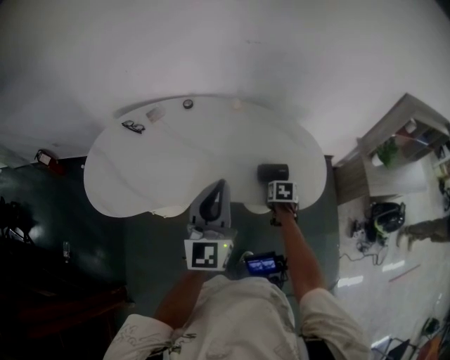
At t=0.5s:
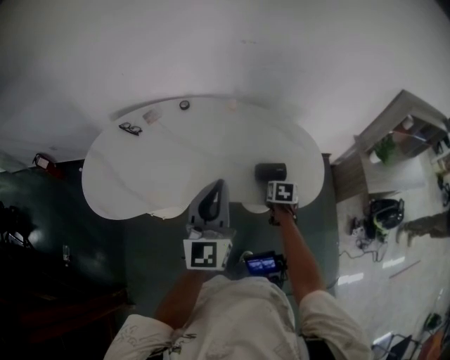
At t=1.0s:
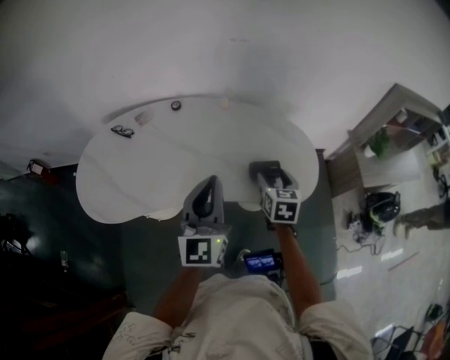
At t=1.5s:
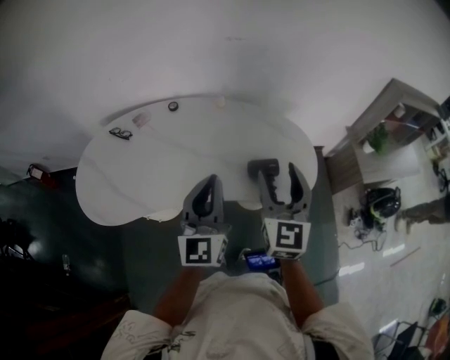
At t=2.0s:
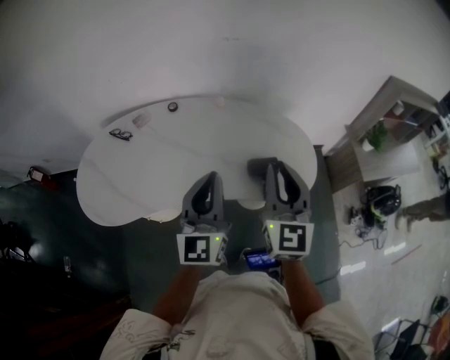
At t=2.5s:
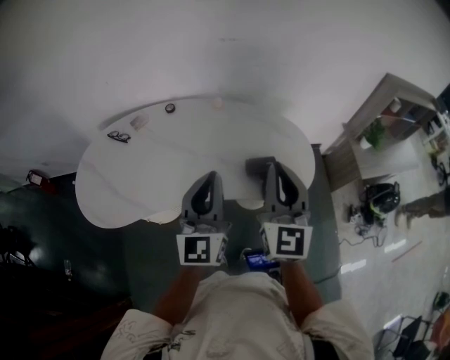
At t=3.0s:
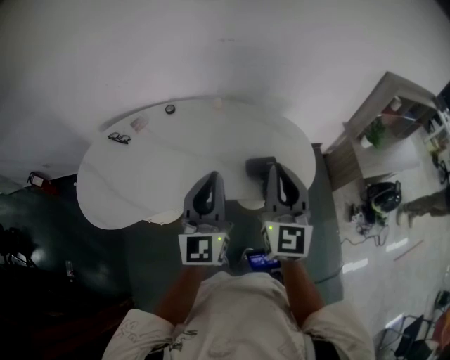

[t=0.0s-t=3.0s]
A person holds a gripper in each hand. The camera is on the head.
t=0.0s to t=1.5s: The right gripper goes approximately 35 cm upward, and angles its fingers upward, by roughly 60 degrees.
t=1.5s to t=3.0s: The right gripper closes up.

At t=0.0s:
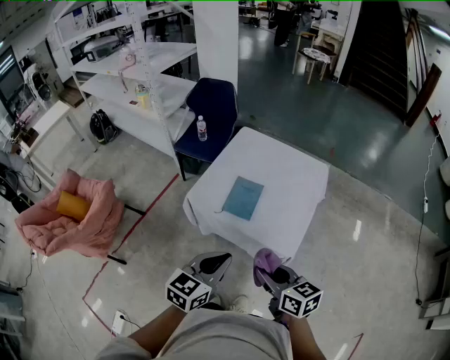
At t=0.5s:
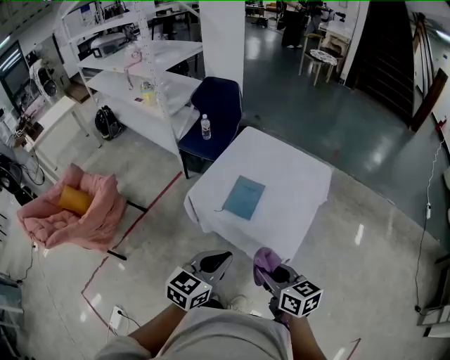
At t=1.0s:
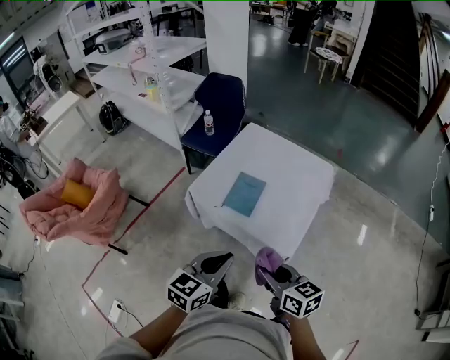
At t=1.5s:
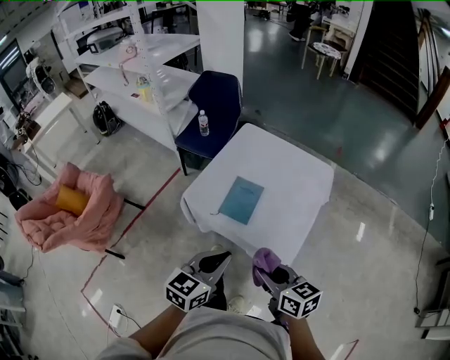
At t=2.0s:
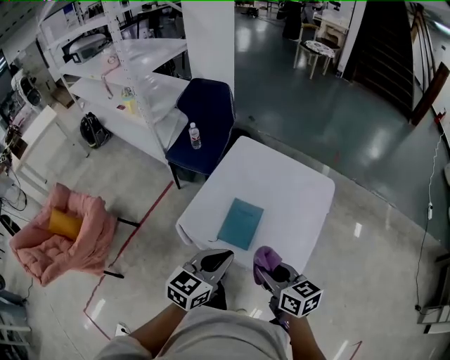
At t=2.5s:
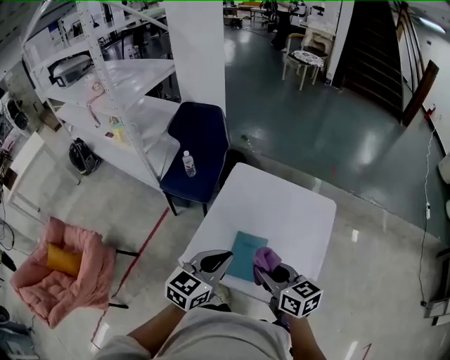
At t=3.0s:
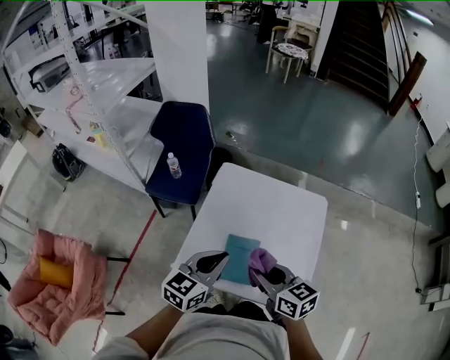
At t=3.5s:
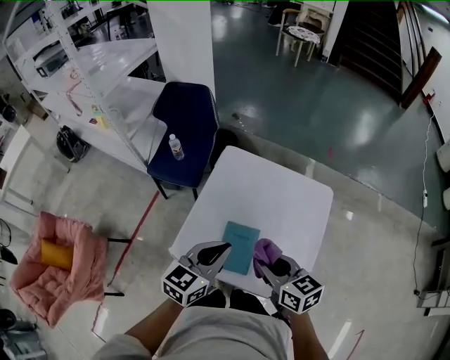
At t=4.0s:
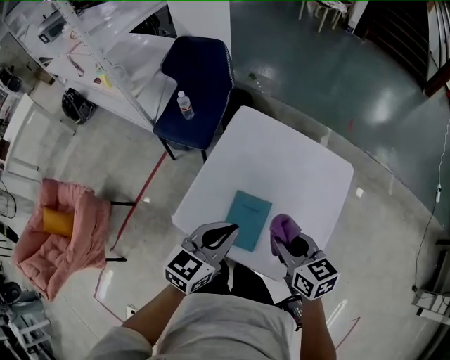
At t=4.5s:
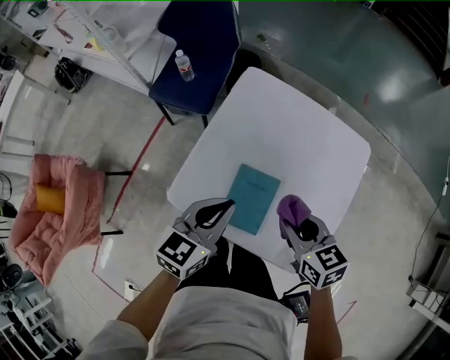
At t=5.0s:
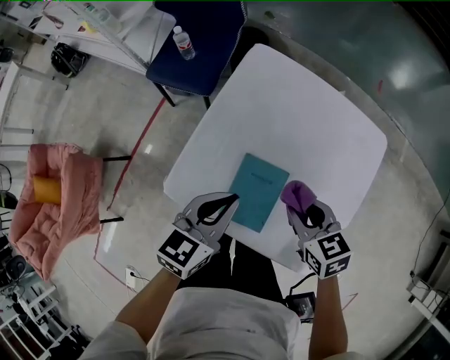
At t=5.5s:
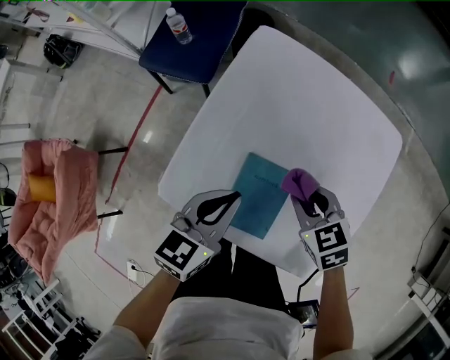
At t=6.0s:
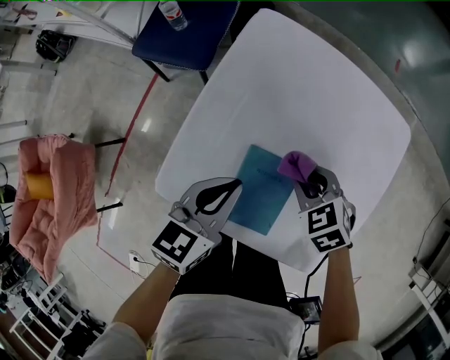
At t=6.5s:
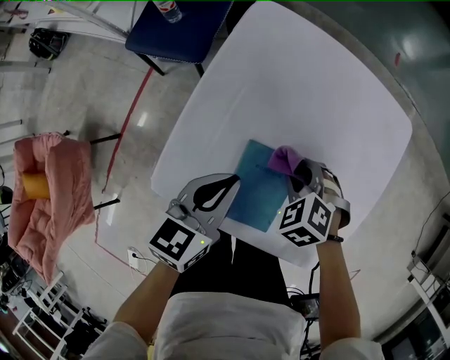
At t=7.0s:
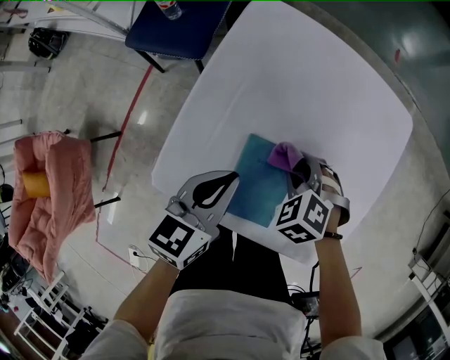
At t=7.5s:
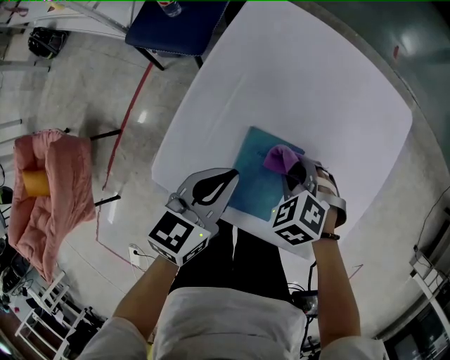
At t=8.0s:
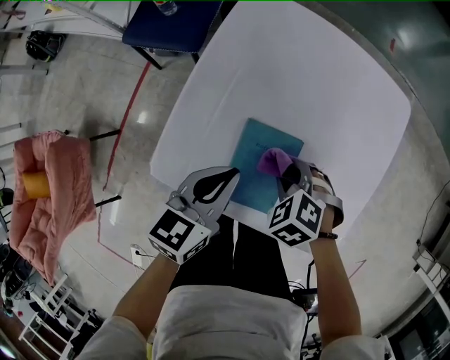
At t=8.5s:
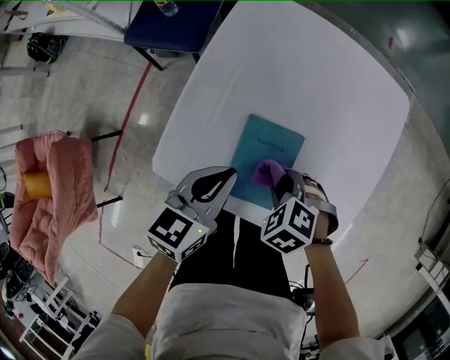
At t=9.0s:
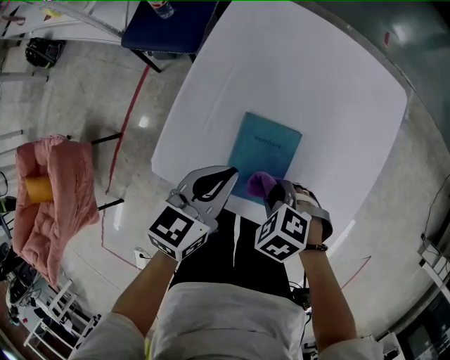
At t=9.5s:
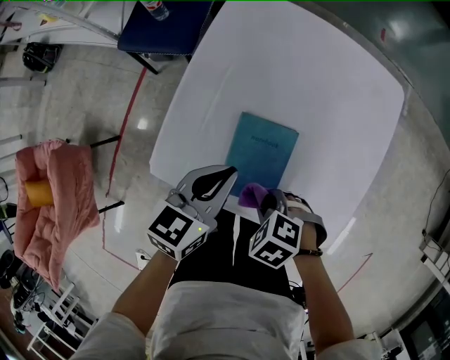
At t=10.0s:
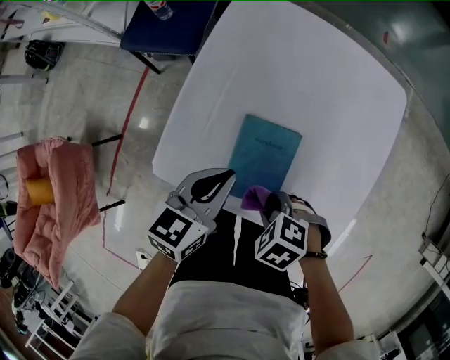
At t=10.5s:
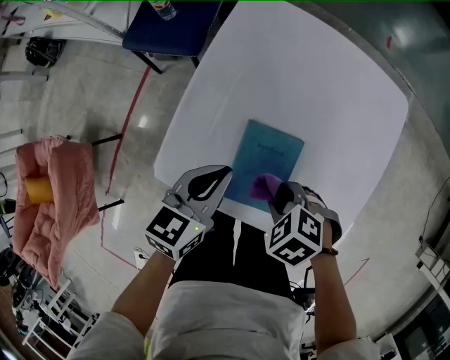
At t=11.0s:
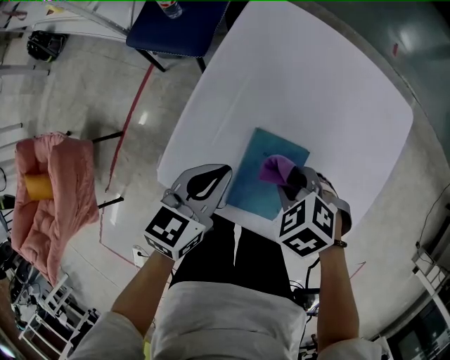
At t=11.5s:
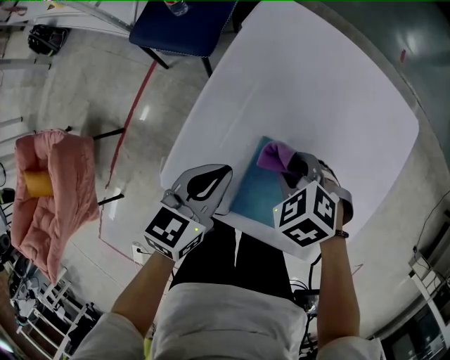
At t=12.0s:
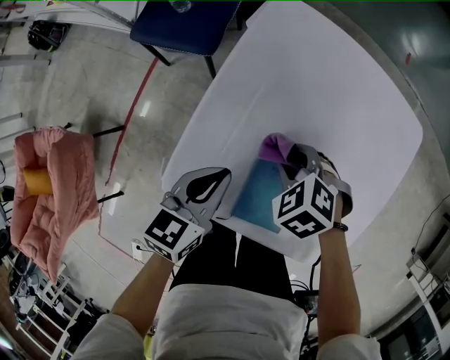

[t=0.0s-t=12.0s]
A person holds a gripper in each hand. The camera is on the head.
t=0.0s to t=2.0s: Both grippers travel together forward, about 15 cm.
t=2.0s to t=4.0s: The grippers both shift forward by some 15 cm.
t=4.0s to t=6.0s: The grippers both shift downward and forward by some 20 cm. The right gripper angles its fingers downward, by about 30 degrees.
t=6.0s to t=8.0s: The right gripper ends up some 10 cm from where it was.
t=8.0s to t=10.0s: The right gripper moves about 10 cm.
t=10.0s to t=12.0s: The right gripper changes place by approximately 20 cm. The left gripper ends up approximately 10 cm from where it was.

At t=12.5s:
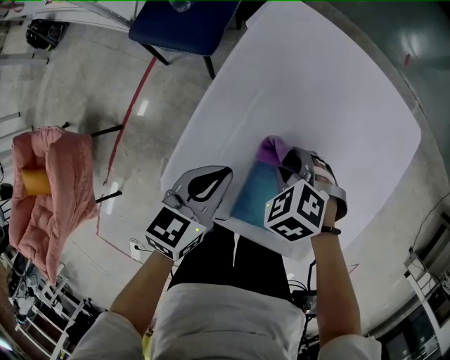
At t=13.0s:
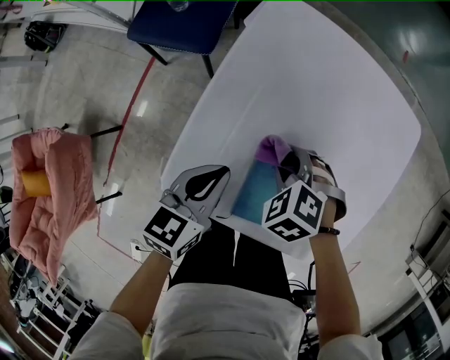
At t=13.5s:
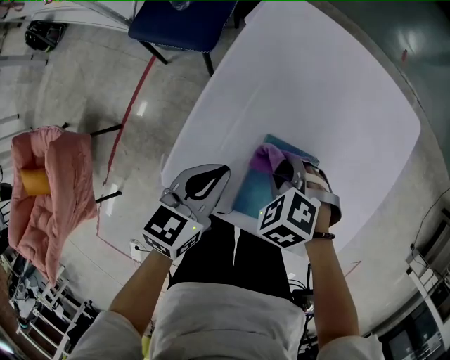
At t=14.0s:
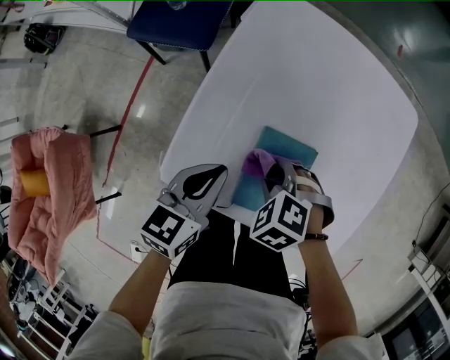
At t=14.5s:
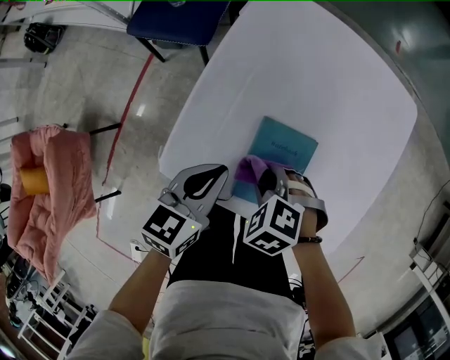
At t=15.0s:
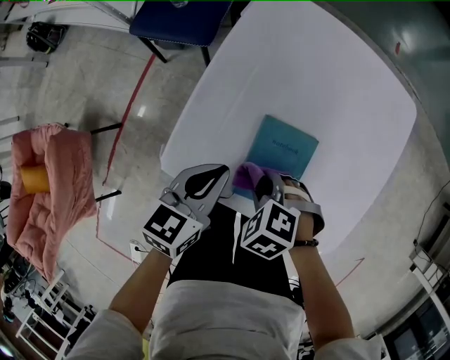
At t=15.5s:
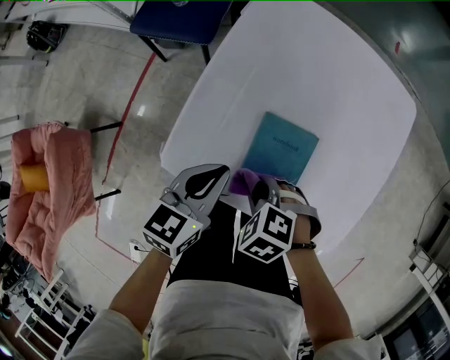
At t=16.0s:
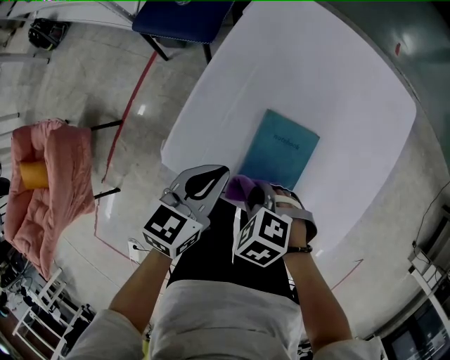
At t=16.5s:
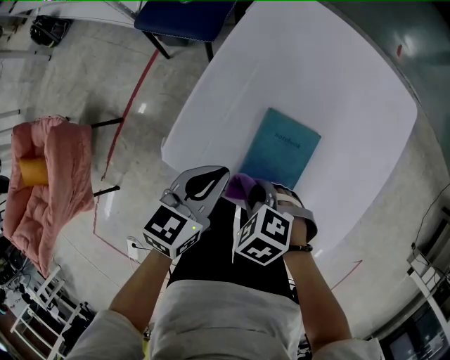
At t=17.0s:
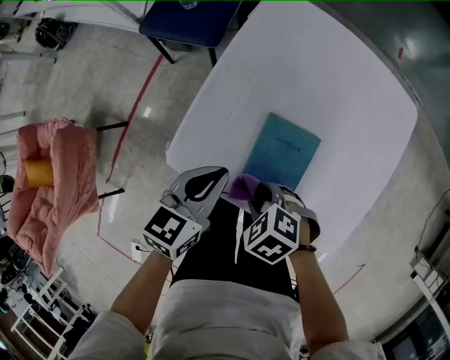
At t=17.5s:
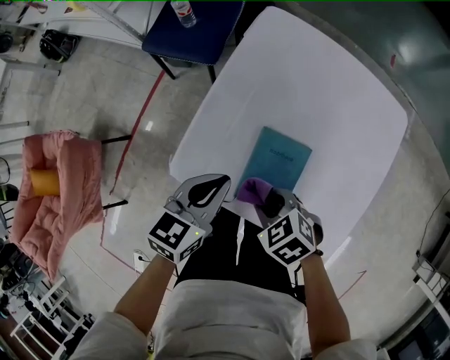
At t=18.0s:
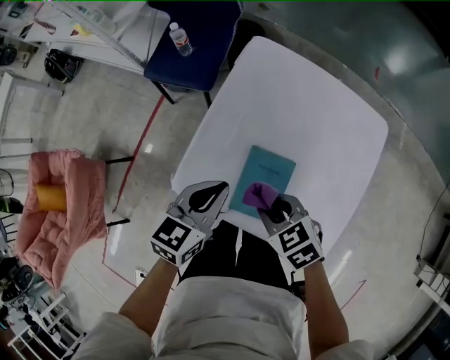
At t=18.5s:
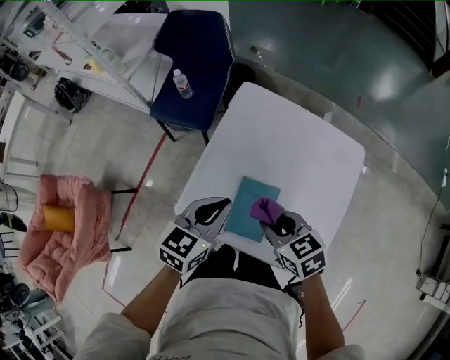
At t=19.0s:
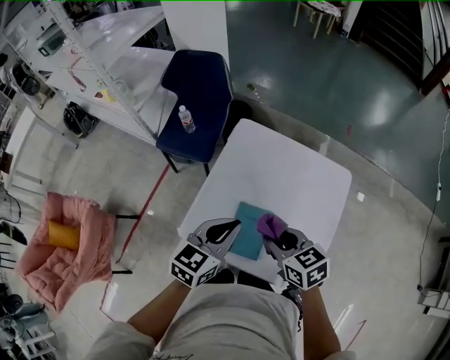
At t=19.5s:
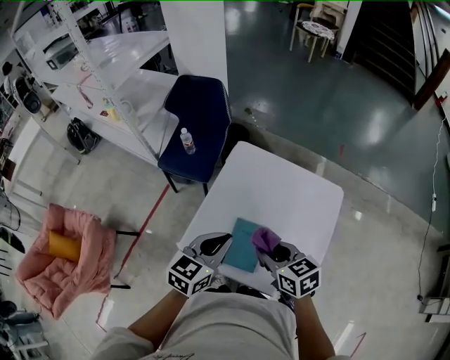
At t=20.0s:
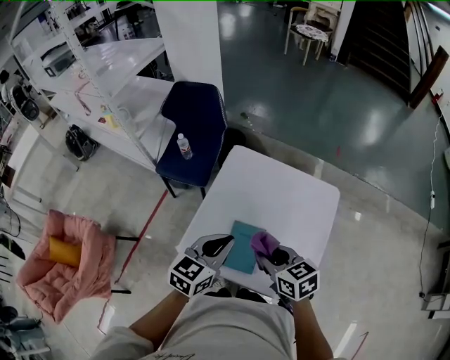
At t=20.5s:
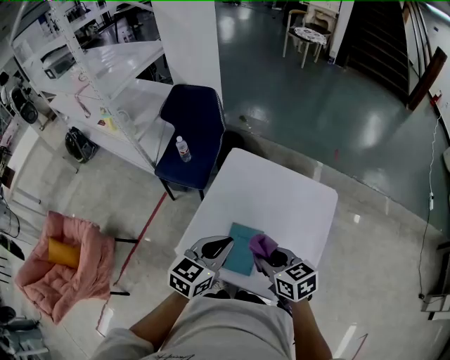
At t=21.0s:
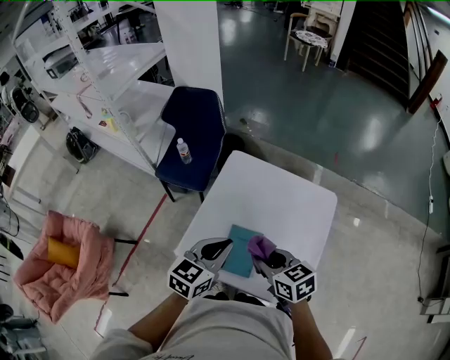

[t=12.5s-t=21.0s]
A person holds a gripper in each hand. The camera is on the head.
t=12.5s to t=14.5s: The right gripper shifts by some 10 cm, while the left gripper ends up approximately 5 cm from where it was.
t=14.5s to t=16.5s: The right gripper shifts by approximately 5 cm.
t=16.5s to t=19.0s: Both grippers move upward, about 20 cm. The right gripper angles its fingers upward, by some 40 degrees.
t=19.0s to t=21.0s: The grippers make only small movements.

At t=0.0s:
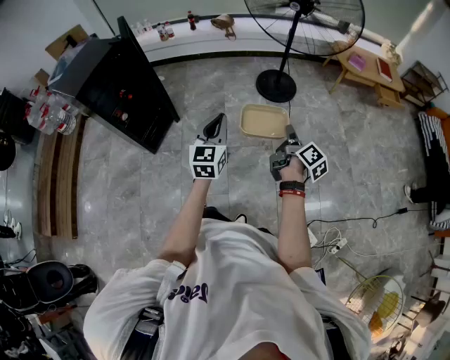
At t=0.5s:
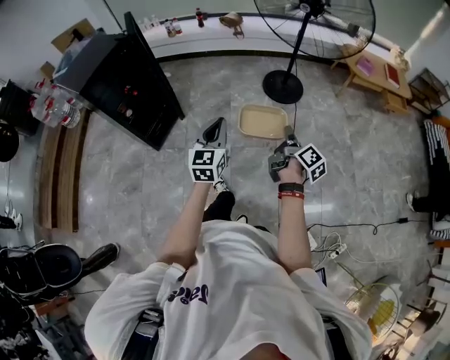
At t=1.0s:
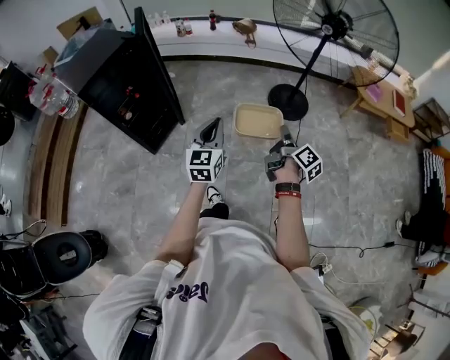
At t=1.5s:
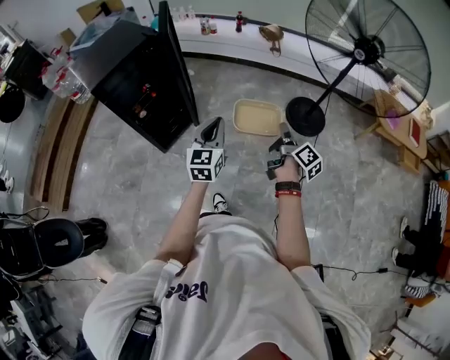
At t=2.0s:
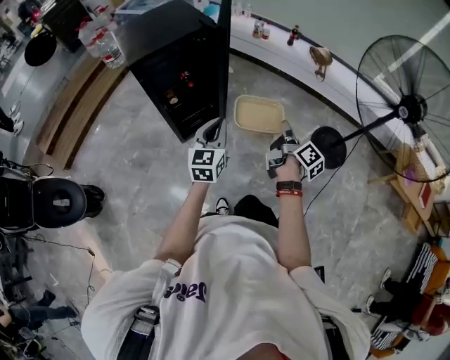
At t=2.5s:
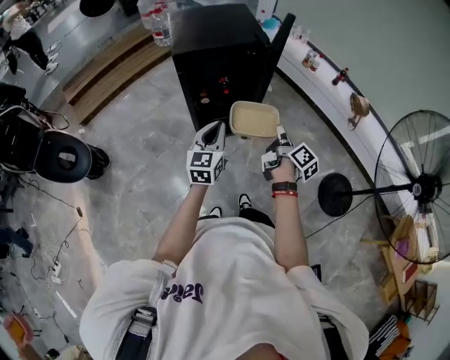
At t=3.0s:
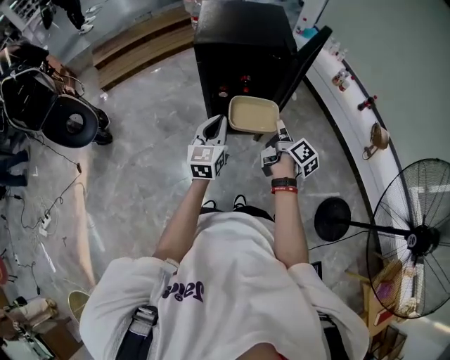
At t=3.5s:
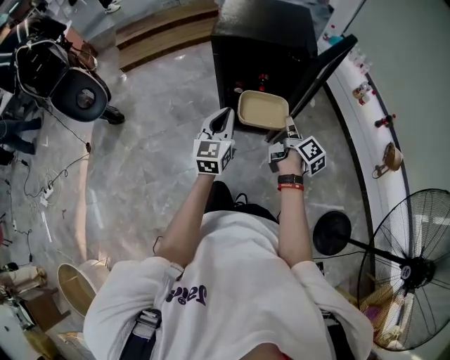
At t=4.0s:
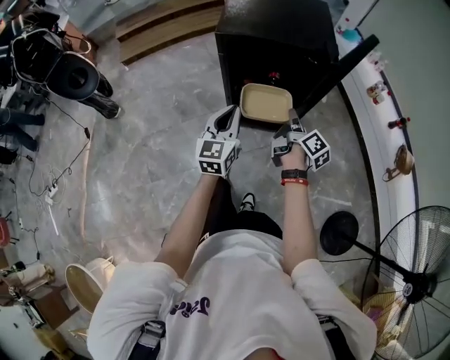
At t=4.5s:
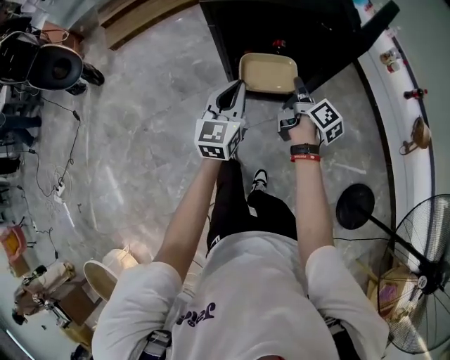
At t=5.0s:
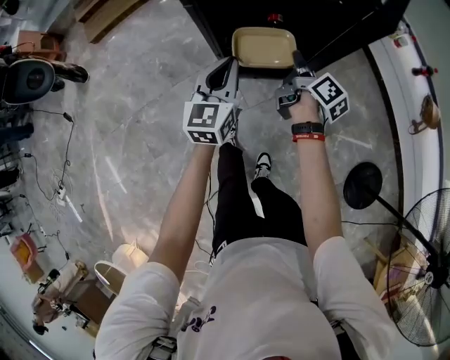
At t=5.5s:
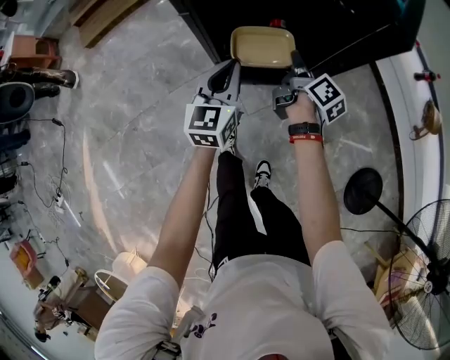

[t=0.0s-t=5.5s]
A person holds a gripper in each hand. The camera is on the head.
t=0.0s to t=2.0s: The right gripper ends up roughly 50 cm from where it was, and changes its angle by some 30 degrees; the left gripper moves about 40 cm, and turns by some 30 degrees.
t=2.0s to t=3.5s: The right gripper moves approximately 25 cm, and swivels some 40 degrees; the left gripper moves about 10 cm, and changes its angle by approximately 40 degrees.
t=3.5s to t=5.5s: The two grippers go roughly 35 cm forward and downward.
